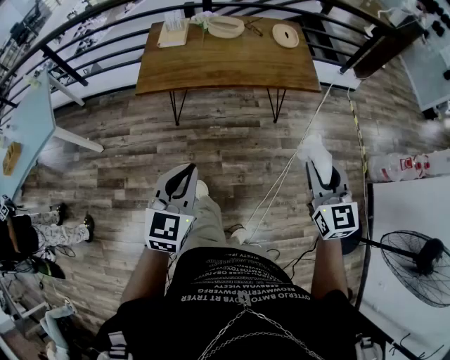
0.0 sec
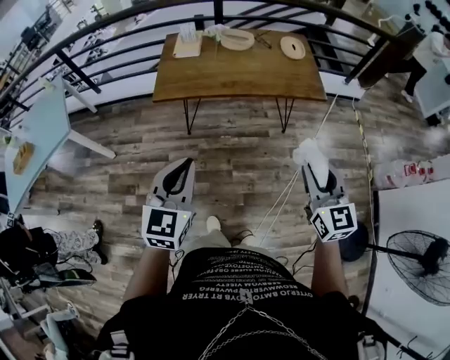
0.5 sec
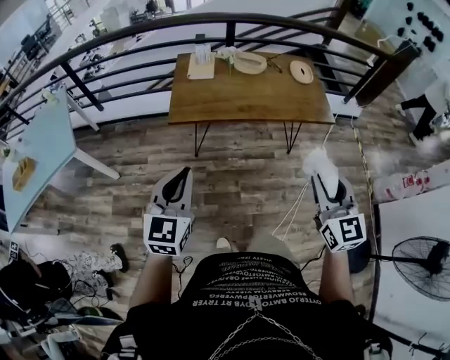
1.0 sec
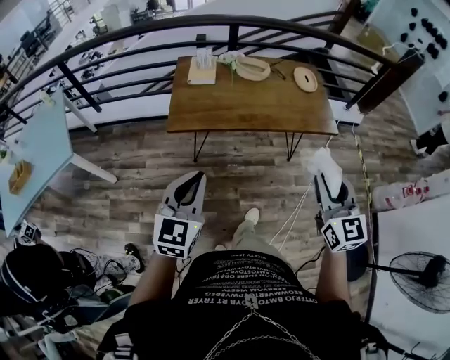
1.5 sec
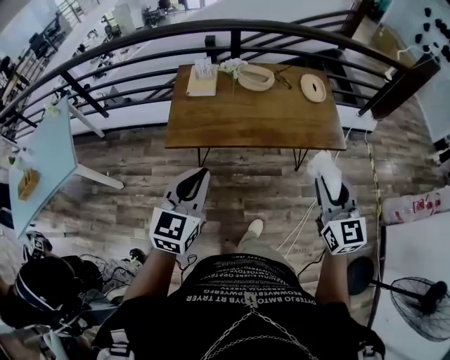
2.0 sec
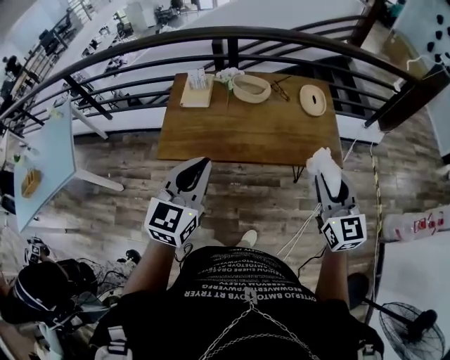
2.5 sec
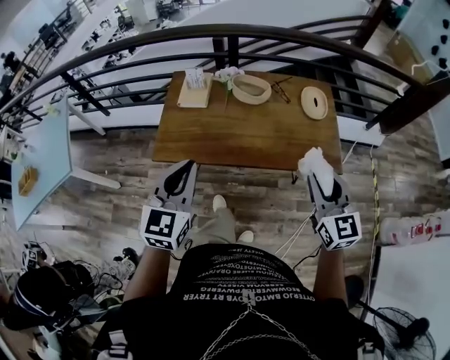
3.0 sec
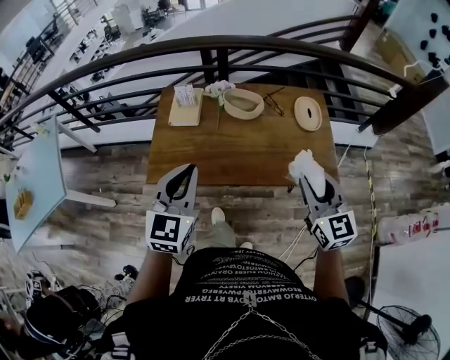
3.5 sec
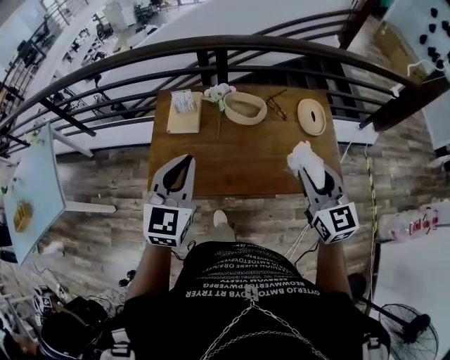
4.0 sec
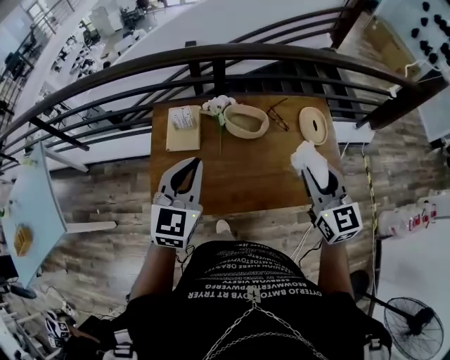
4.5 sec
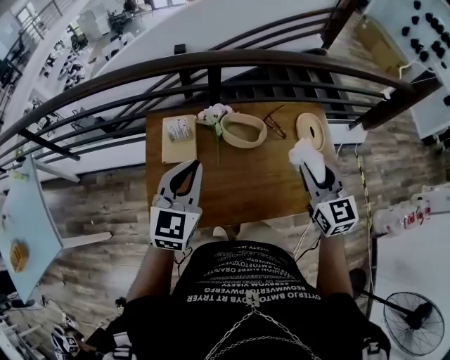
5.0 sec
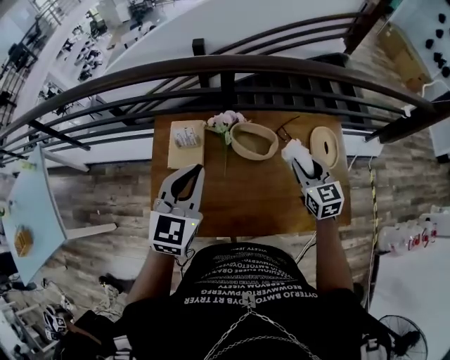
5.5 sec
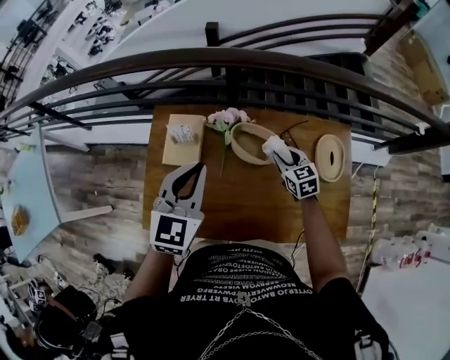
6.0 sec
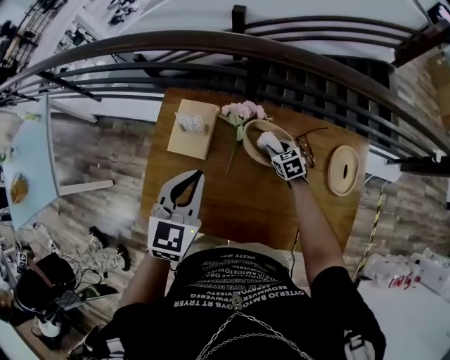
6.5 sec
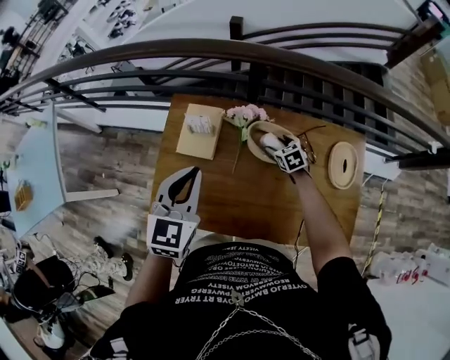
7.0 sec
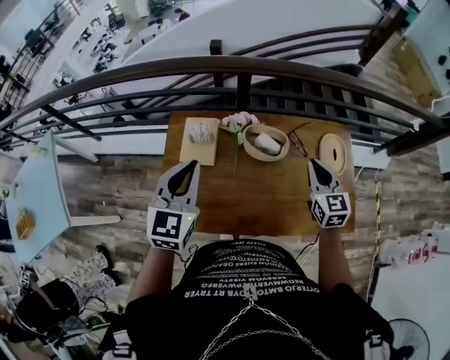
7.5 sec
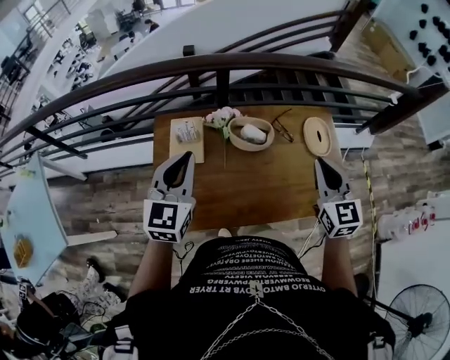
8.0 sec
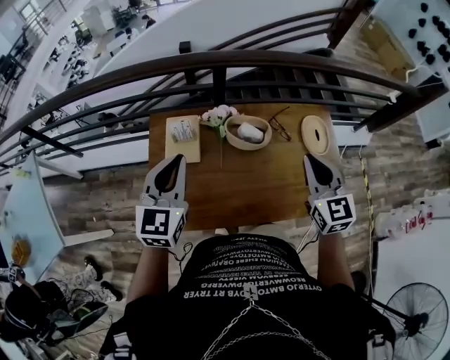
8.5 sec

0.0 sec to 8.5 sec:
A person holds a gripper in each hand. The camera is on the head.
0.0 sec to 2.0 sec: Both grippers move forward and to the left, some 20 cm.
2.0 sec to 4.0 sec: Both grippers travel together forward, approximately 30 cm.
4.0 sec to 6.5 sec: The left gripper moves forward and downward, about 25 cm; the right gripper moves forward and downward, some 50 cm, and points its fingers about 40 degrees further downward.
6.5 sec to 8.5 sec: The left gripper is displaced upward and to the left by approximately 10 cm. The right gripper travels upward and backward by roughly 40 cm, tips its fingers upward by some 40 degrees, and opens and closes again.

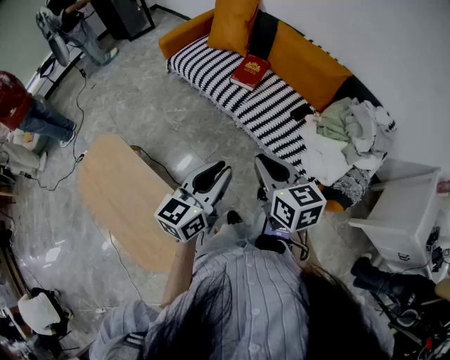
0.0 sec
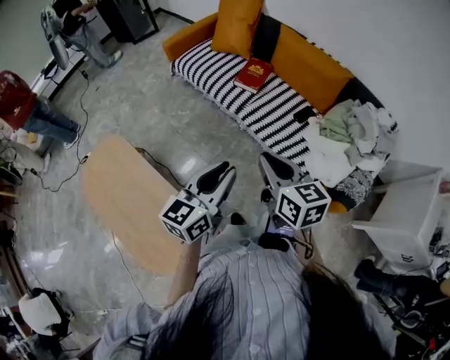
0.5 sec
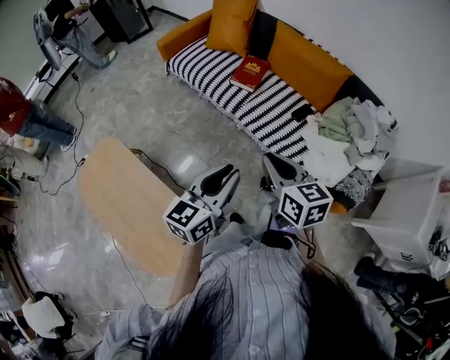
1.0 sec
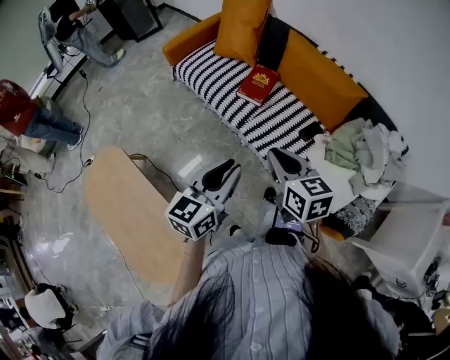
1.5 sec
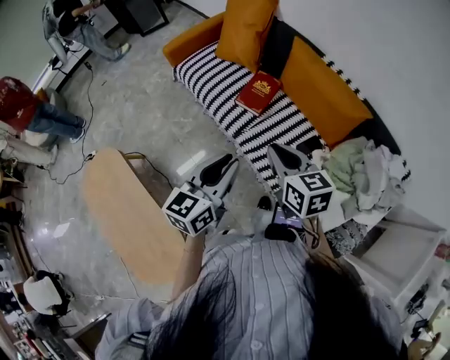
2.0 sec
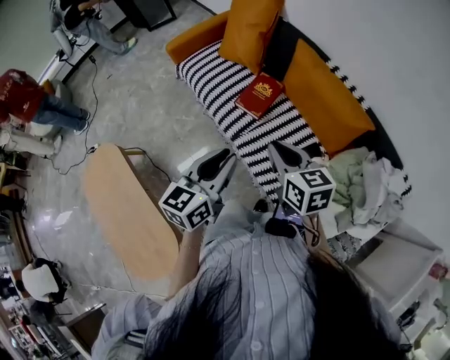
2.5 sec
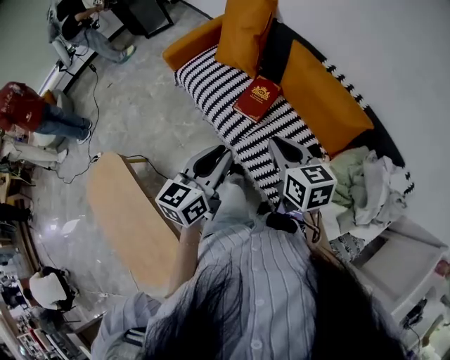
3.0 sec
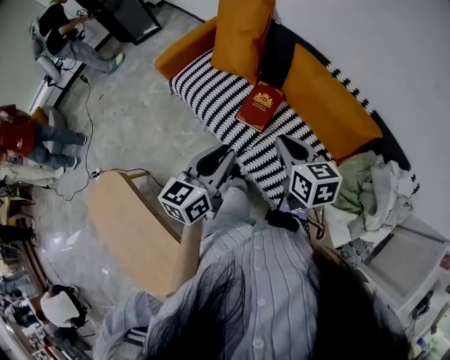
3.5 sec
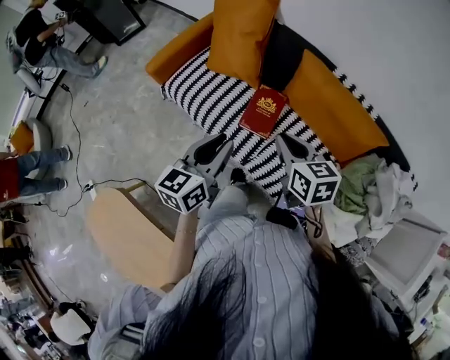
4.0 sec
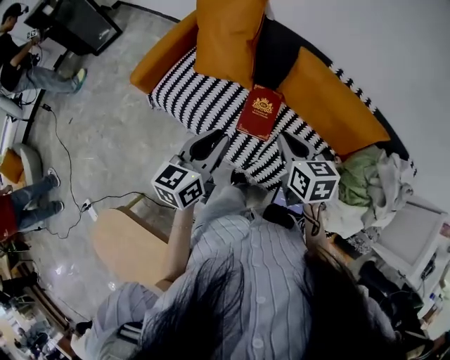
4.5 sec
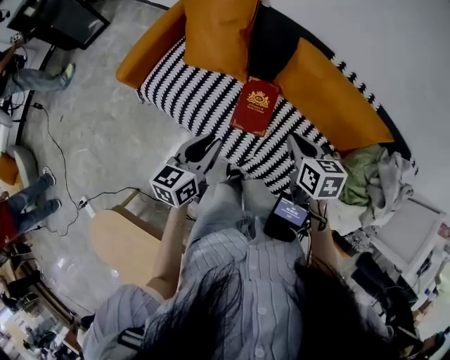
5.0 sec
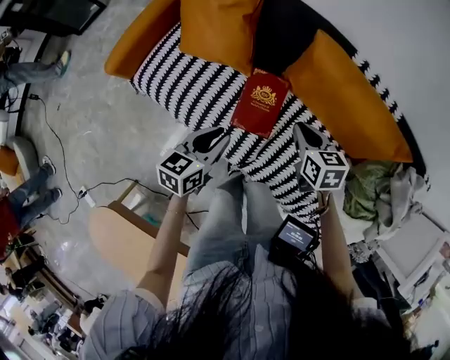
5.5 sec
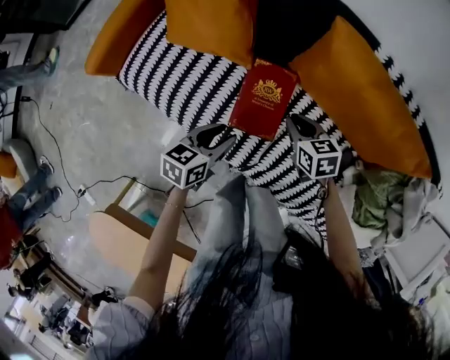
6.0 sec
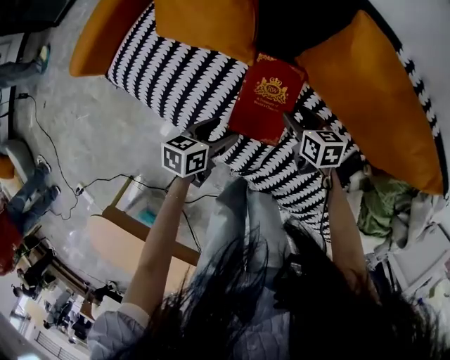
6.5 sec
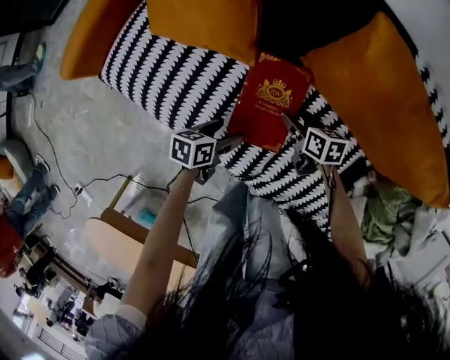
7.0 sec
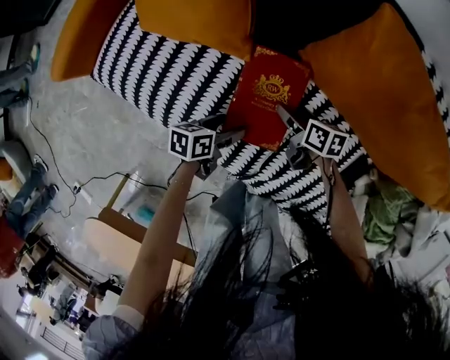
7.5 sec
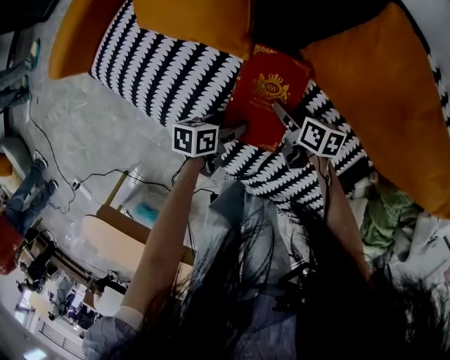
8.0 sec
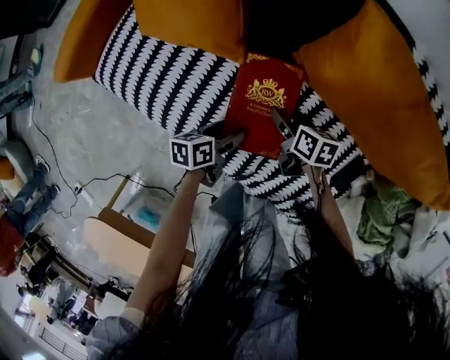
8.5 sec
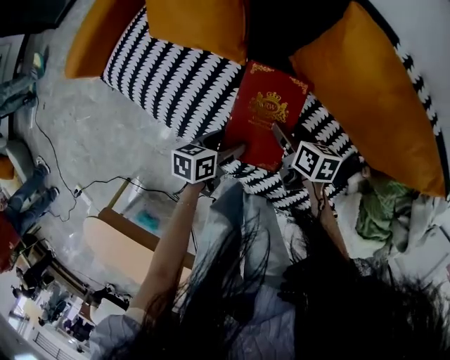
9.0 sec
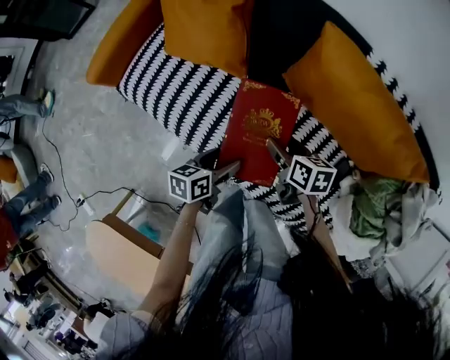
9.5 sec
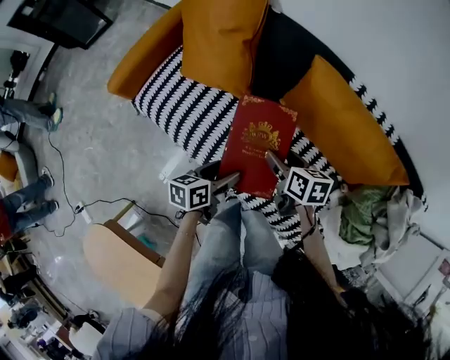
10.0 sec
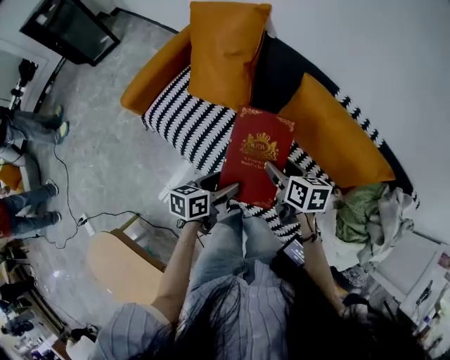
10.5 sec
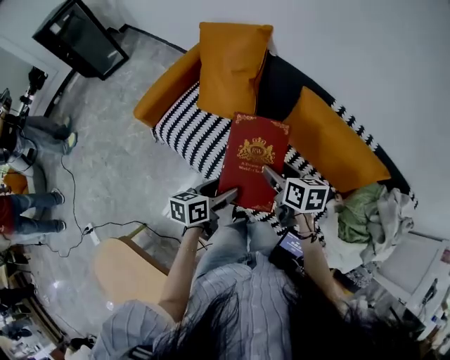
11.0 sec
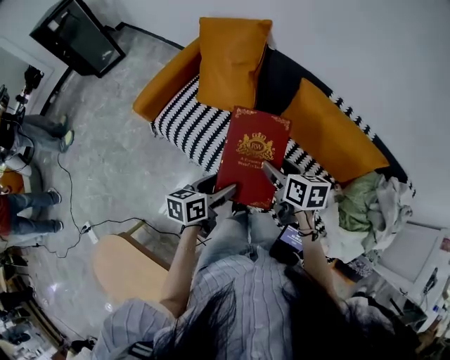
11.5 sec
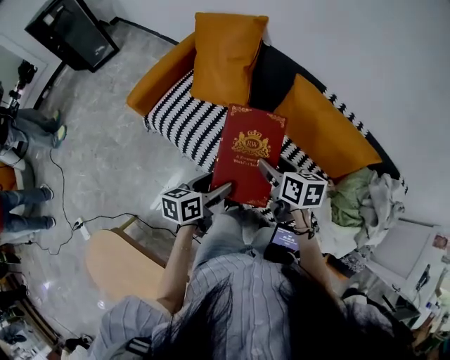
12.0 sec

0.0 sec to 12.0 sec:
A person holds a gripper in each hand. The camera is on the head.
0.0 sec to 2.0 sec: Both grippers travel together forward, approximately 25 cm.
2.0 sec to 4.0 sec: Both grippers move forward, some 25 cm.
4.0 sec to 6.0 sec: The two grippers go approximately 40 cm downward and forward. The left gripper swivels approximately 30 degrees.
6.0 sec to 8.0 sec: Both grippers travel together downward, roughly 20 cm. The right gripper rotates some 30 degrees, and opens. Meanwhile the left gripper changes its angle by approximately 30 degrees, and opens.
8.0 sec to 10.0 sec: The grippers both shift upward by roughly 25 cm.
10.0 sec to 12.0 sec: The grippers both shift upward and backward by approximately 20 cm.

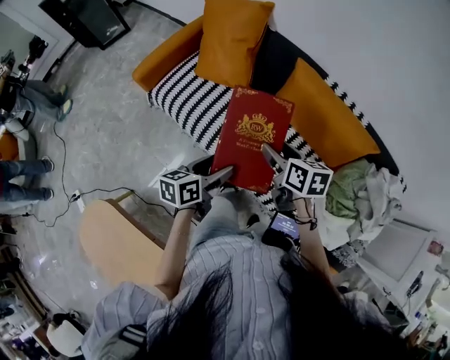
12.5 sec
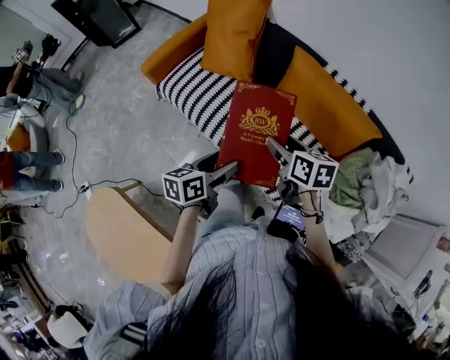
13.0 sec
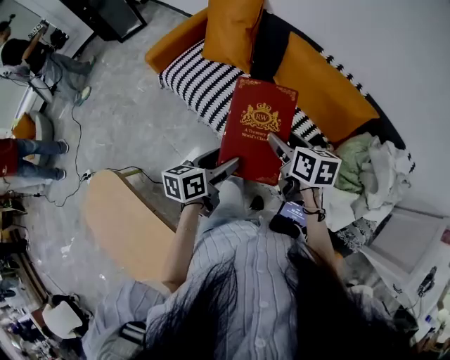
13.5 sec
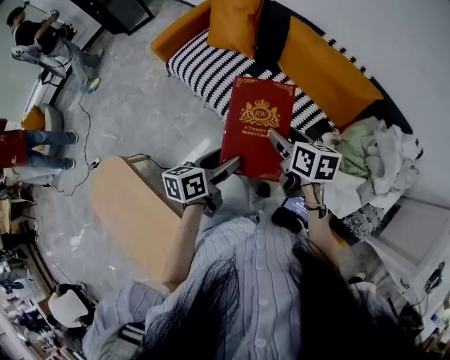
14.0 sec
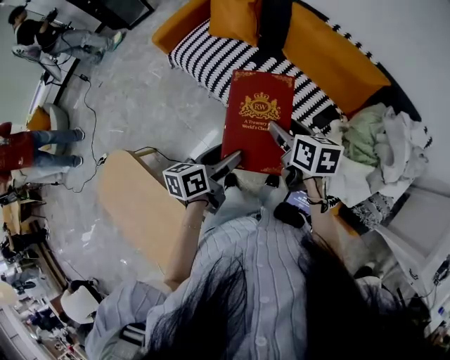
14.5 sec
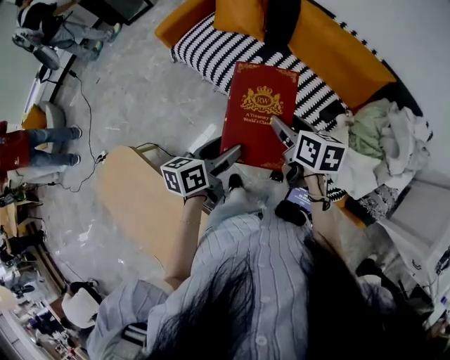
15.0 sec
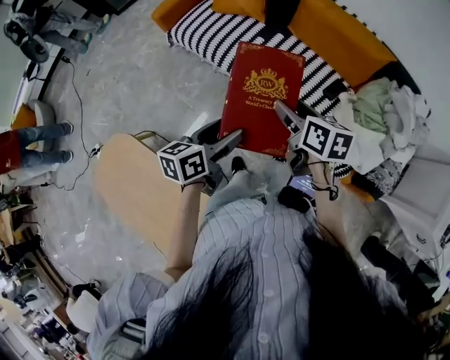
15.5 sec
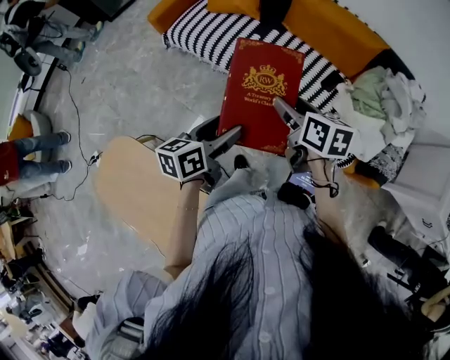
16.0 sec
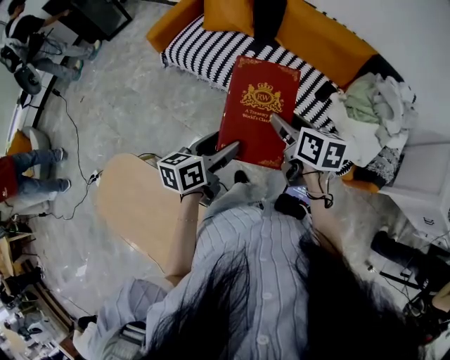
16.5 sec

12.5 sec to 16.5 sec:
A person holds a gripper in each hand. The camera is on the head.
12.5 sec to 14.5 sec: The two grippers go approximately 20 cm backward.
14.5 sec to 16.5 sec: The right gripper goes approximately 20 cm backward and to the left. The left gripper goes some 20 cm to the left and backward.

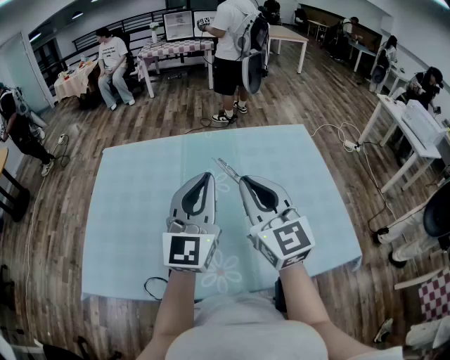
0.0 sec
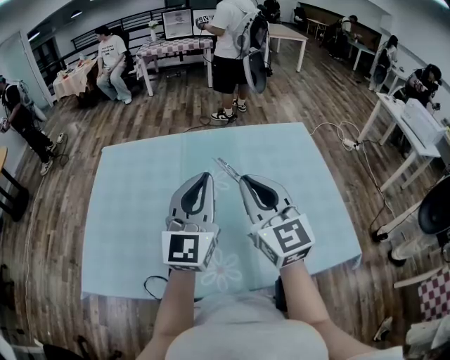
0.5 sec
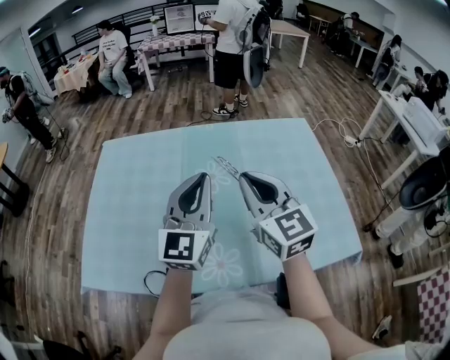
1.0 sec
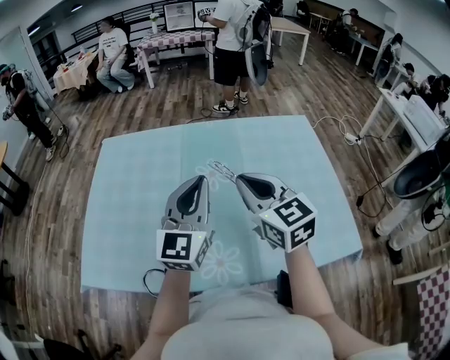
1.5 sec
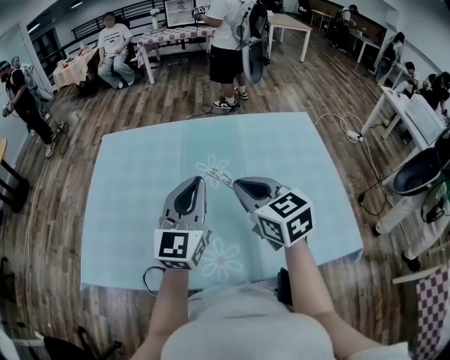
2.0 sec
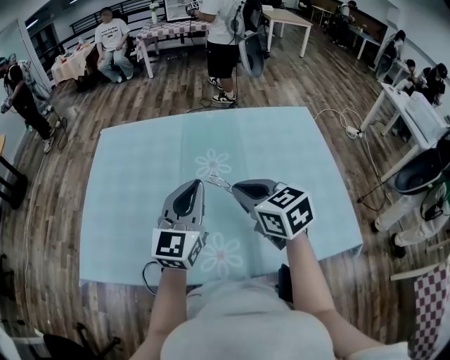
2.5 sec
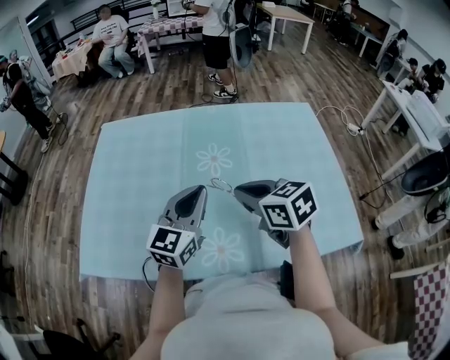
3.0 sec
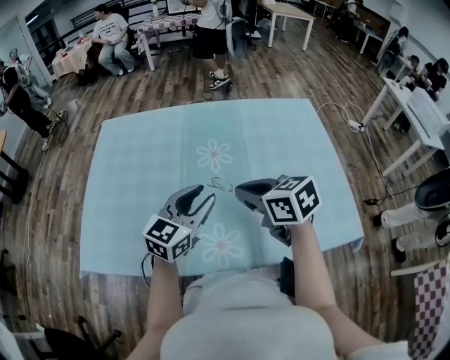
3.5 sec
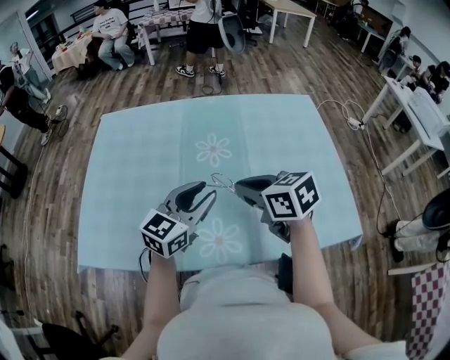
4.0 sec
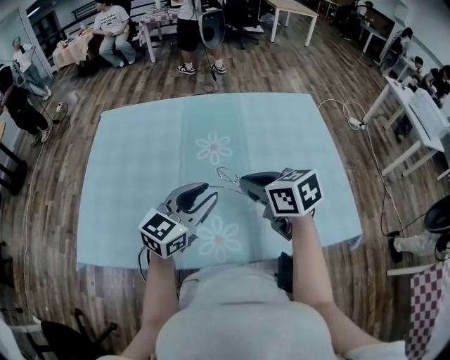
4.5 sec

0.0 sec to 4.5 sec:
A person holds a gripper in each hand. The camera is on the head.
0.0 sec to 2.0 sec: The grippers both shift downward by approximately 5 cm. The right gripper rotates some 30 degrees.
2.0 sec to 4.5 sec: The right gripper travels downward by some 5 cm, and rotates approximately 20 degrees. The left gripper heads downward and backward, covering about 10 cm, swivels approximately 30 degrees, and opens.
